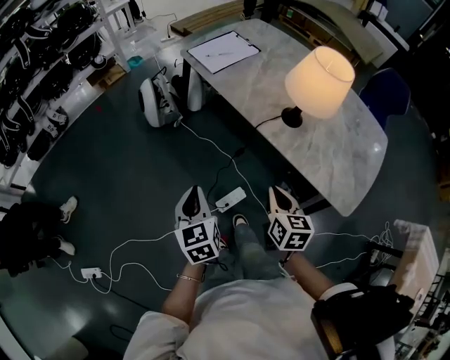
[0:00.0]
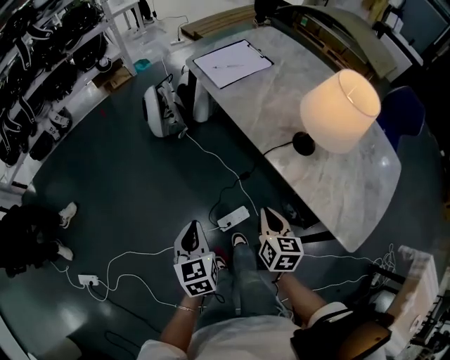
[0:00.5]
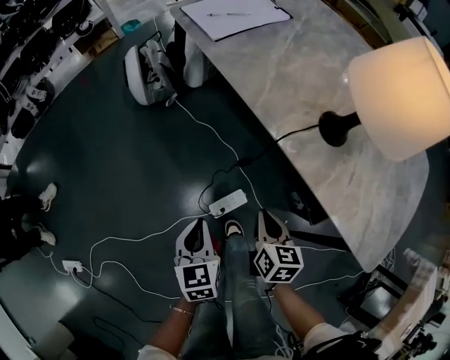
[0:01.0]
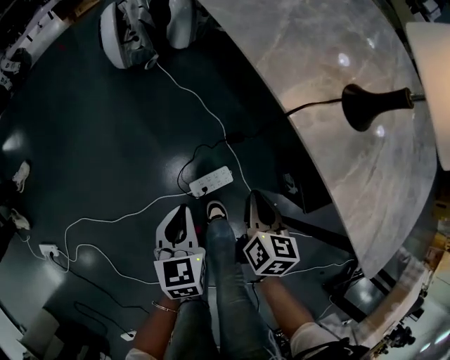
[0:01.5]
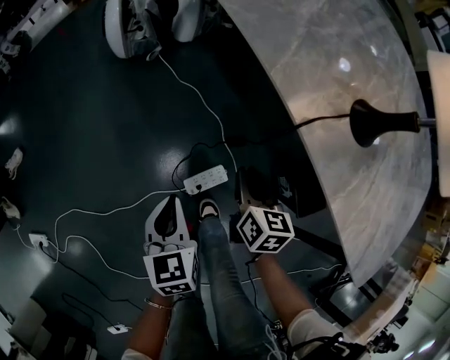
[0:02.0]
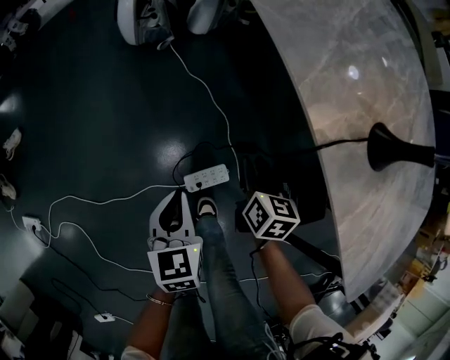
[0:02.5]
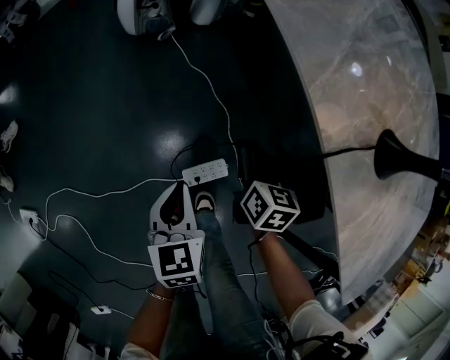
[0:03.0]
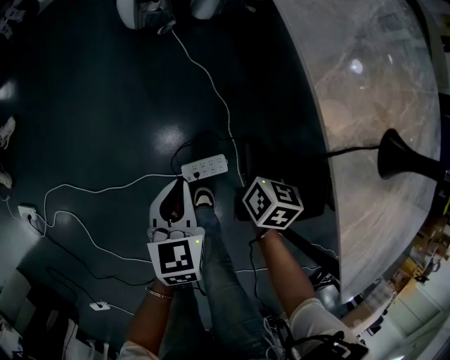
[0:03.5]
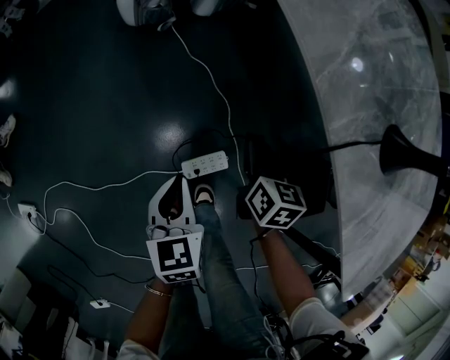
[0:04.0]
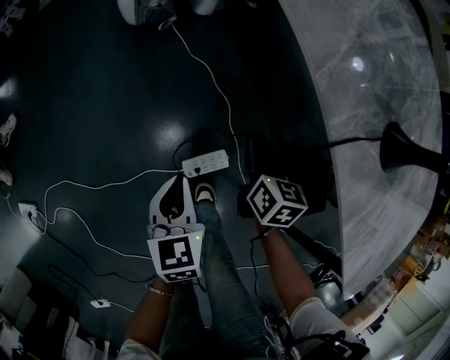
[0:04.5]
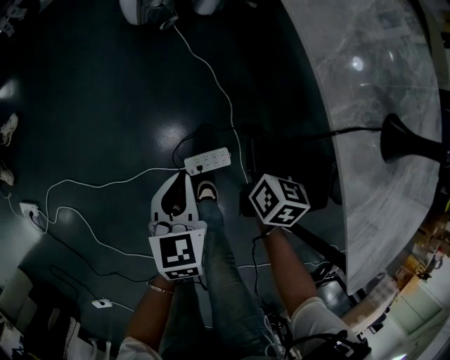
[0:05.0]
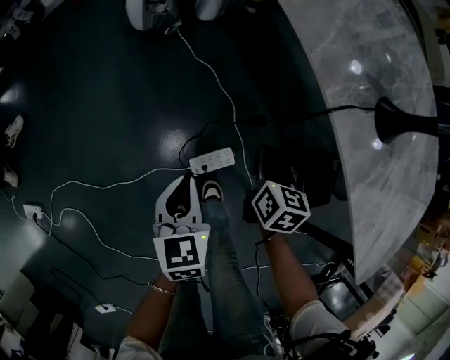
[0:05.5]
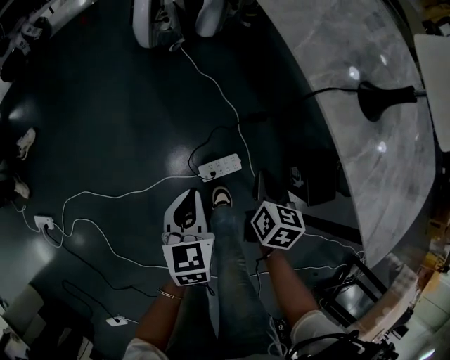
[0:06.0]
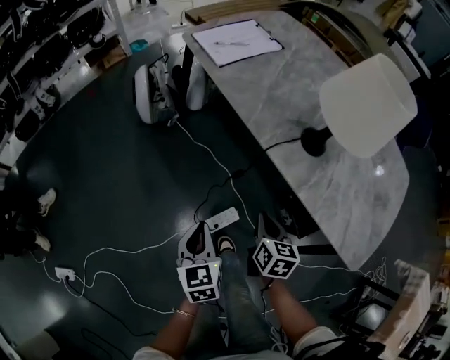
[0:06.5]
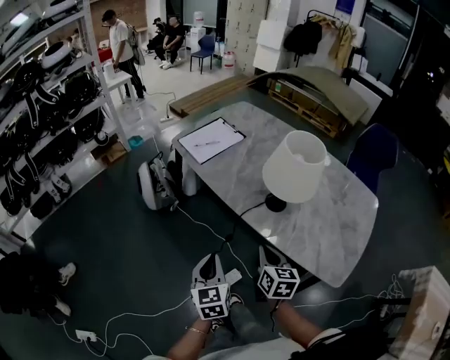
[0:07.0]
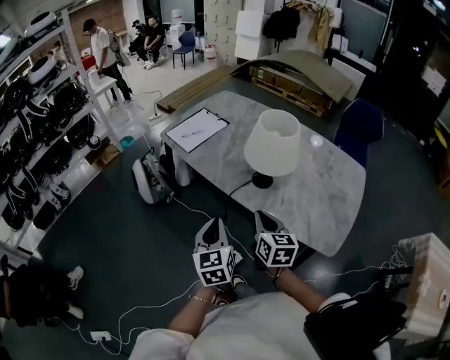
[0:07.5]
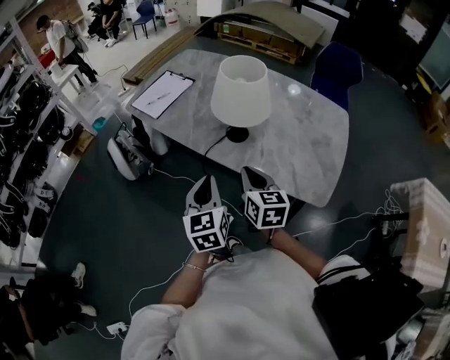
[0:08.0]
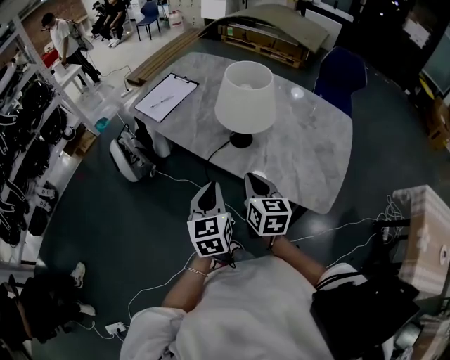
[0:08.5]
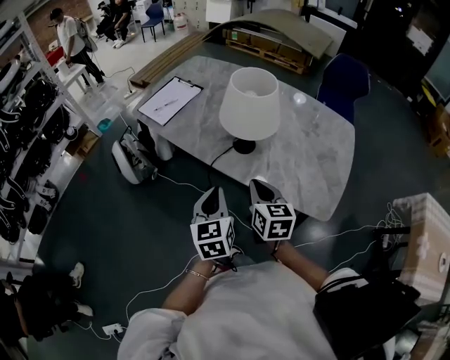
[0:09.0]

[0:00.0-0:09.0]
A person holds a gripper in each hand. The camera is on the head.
0:00.0 to 0:02.0: The left gripper is displaced downward by some 30 cm. Meanwhile the right gripper is displaced downward and forward by about 40 cm.
0:02.0 to 0:04.5: The right gripper is displaced forward by about 5 cm.
0:04.5 to 0:07.0: The left gripper travels upward by roughly 35 cm, and changes its angle by some 30 degrees. Meanwhile the right gripper heads upward and backward, covering some 40 cm, and swivels approximately 20 degrees.
0:07.0 to 0:09.0: The two grippers go some 10 cm to the right and upward.

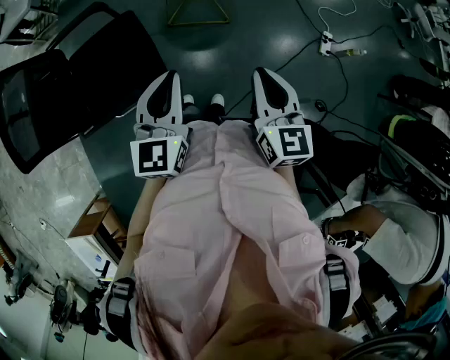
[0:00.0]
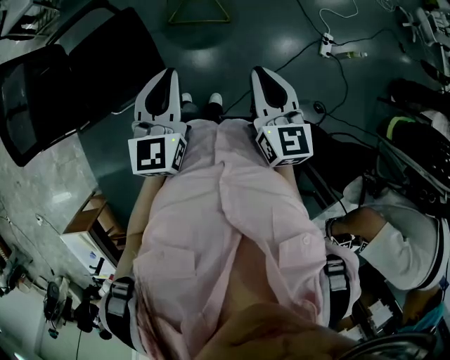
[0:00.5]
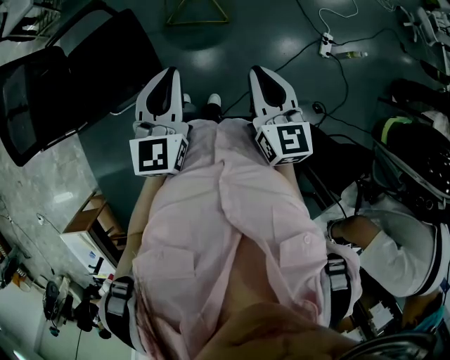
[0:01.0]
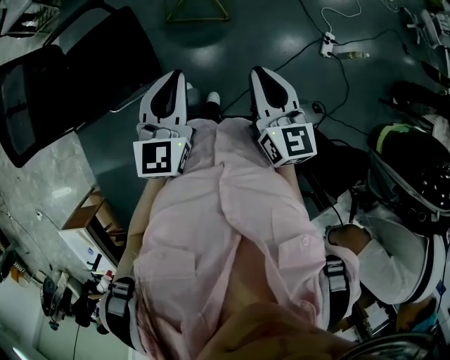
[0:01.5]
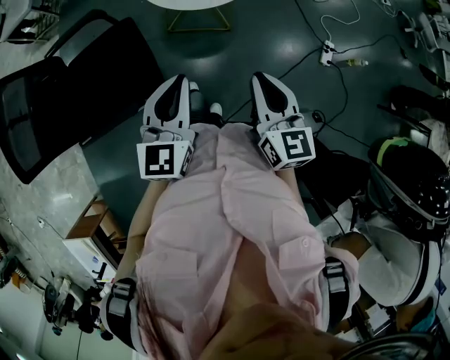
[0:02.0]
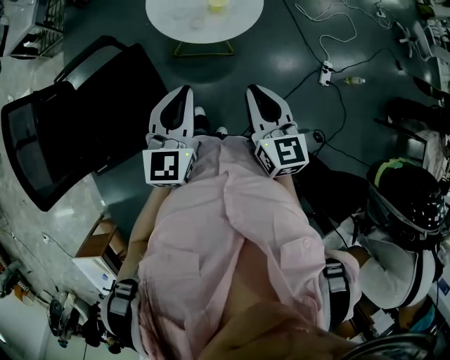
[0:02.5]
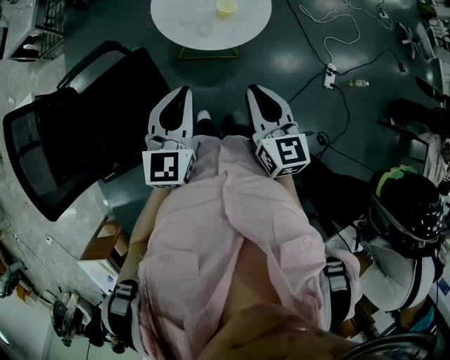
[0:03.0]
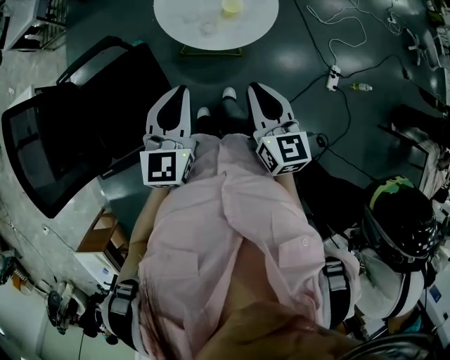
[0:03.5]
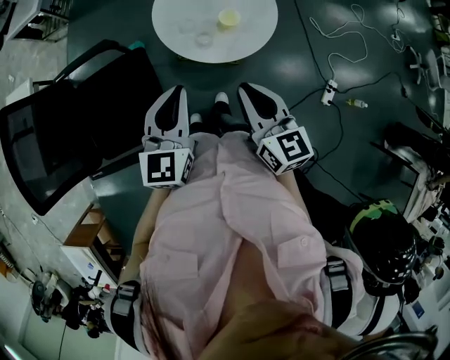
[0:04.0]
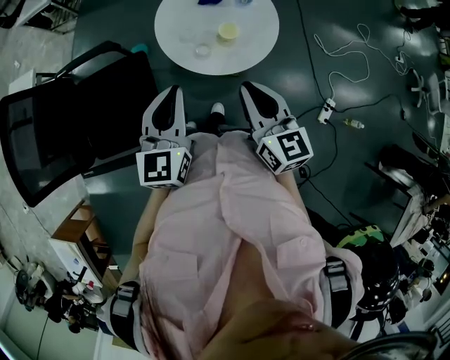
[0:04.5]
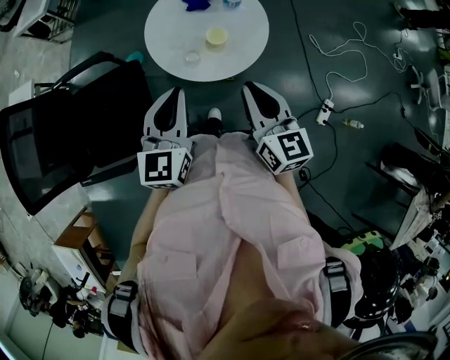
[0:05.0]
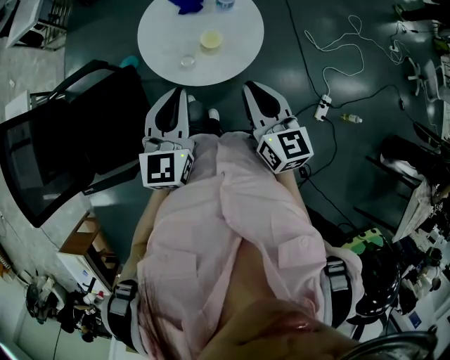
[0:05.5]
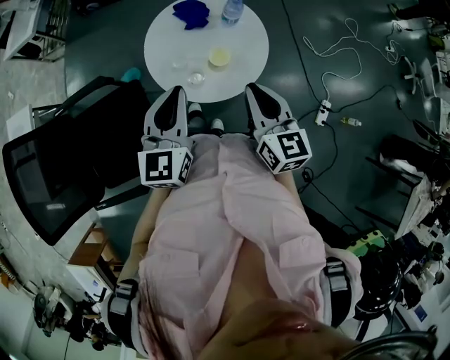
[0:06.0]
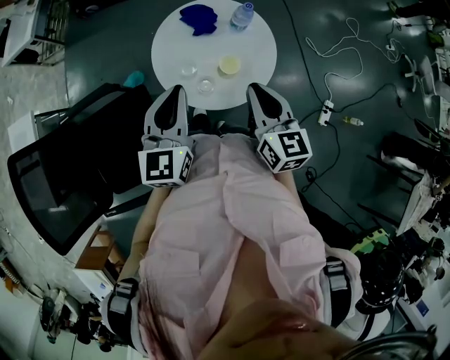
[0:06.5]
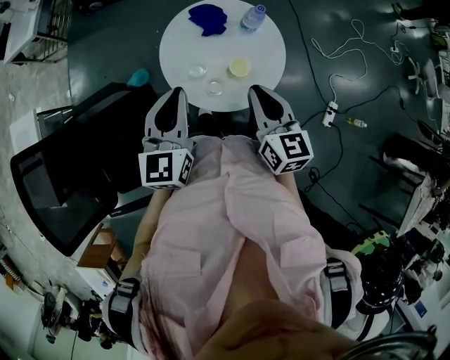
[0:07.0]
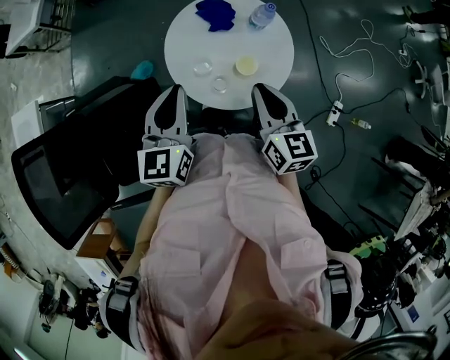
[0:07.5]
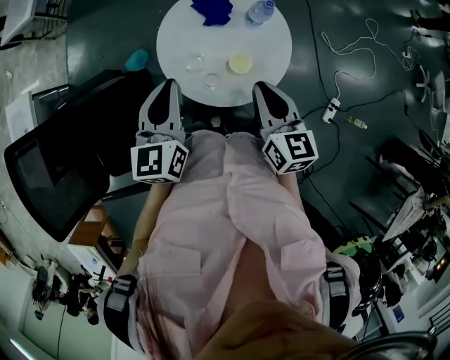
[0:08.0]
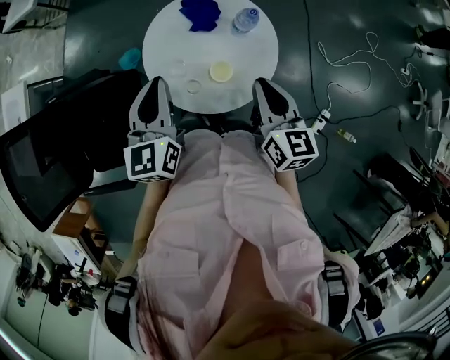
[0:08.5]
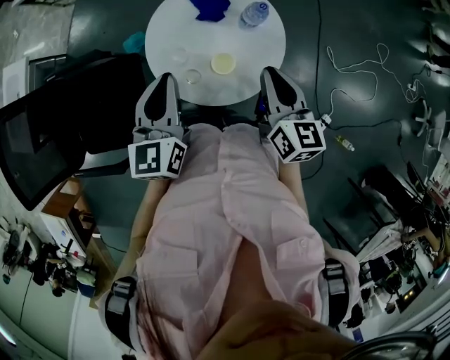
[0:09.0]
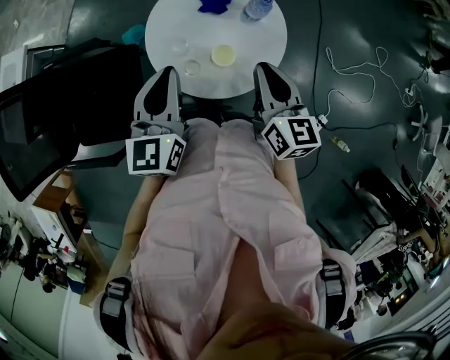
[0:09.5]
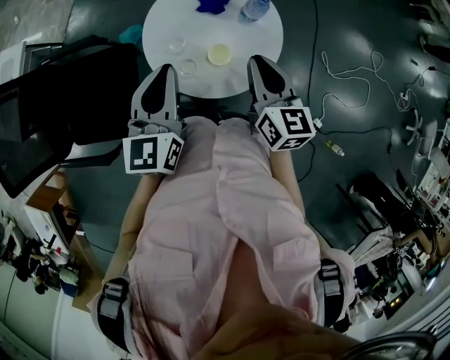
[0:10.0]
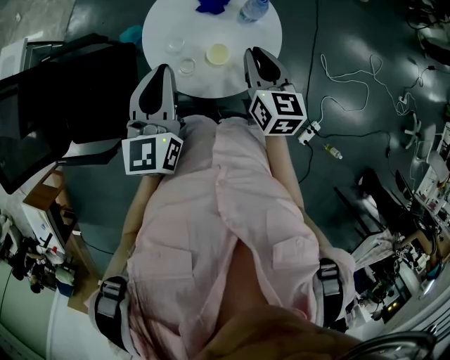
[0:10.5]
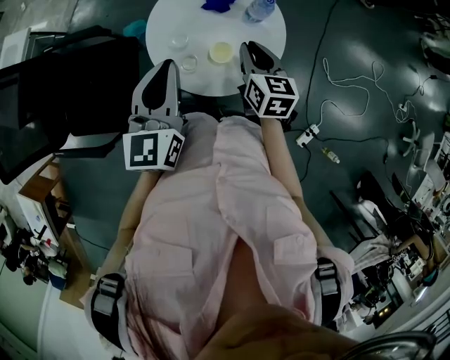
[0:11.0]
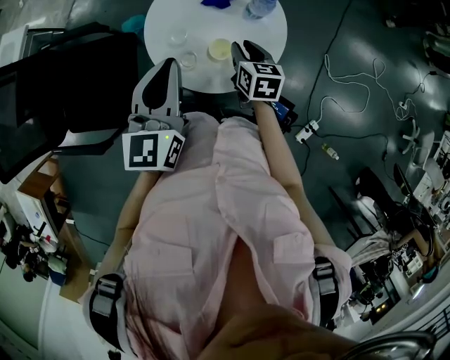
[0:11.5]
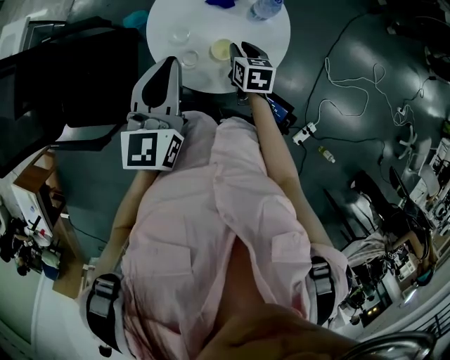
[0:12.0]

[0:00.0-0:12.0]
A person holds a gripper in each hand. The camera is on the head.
0:00.0 to 0:02.0: The left gripper moves some 5 cm, while the right gripper moves forward, some 5 cm.
0:02.0 to 0:04.0: Both grippers move forward, about 20 cm.
0:04.0 to 0:06.0: The right gripper travels forward and to the right by approximately 15 cm; the left gripper goes about 15 cm forward.
0:06.0 to 0:08.0: The left gripper travels forward and to the left by some 10 cm, while the right gripper goes about 5 cm forward.
0:08.0 to 0:10.0: The two grippers go about 5 cm to the right.
0:10.0 to 0:12.0: The right gripper is displaced downward by some 20 cm, and rotates some 30 degrees.

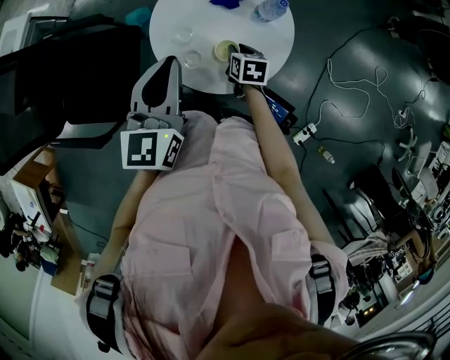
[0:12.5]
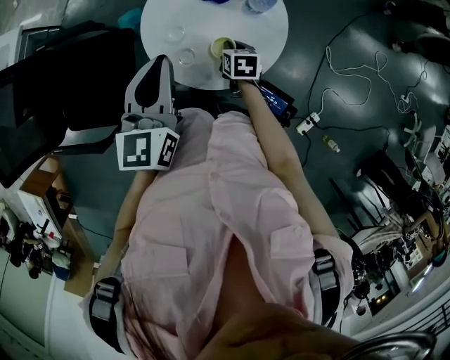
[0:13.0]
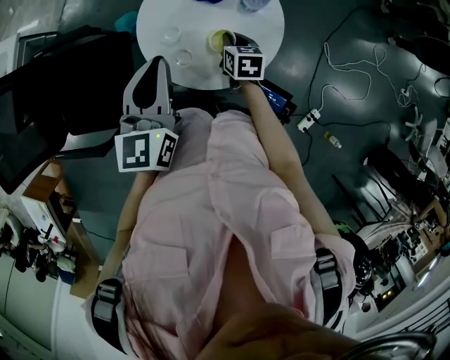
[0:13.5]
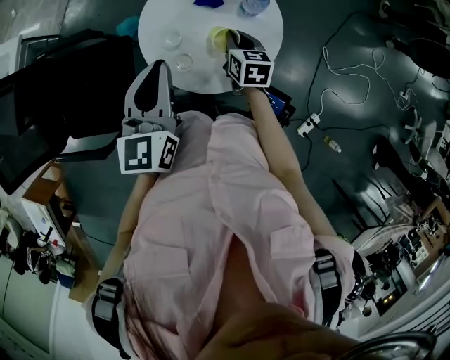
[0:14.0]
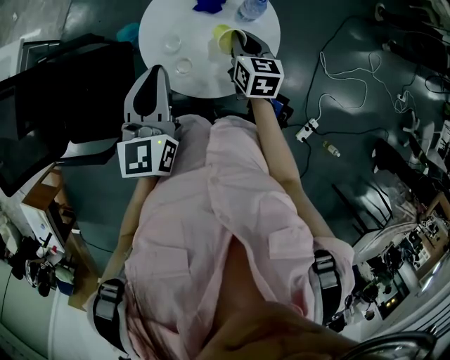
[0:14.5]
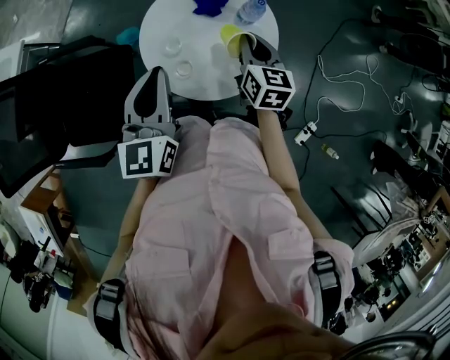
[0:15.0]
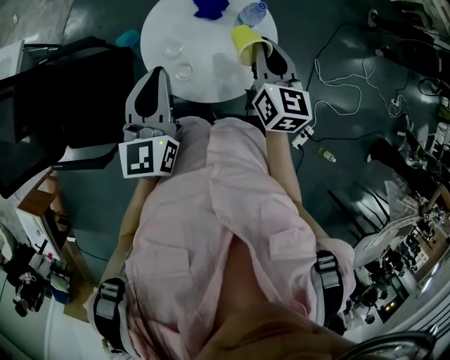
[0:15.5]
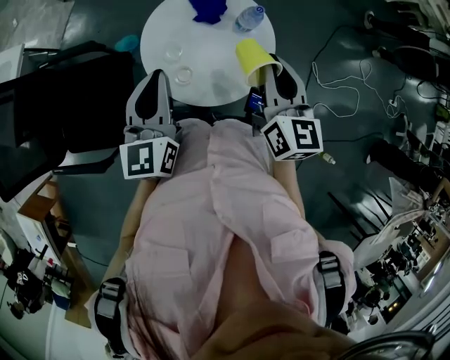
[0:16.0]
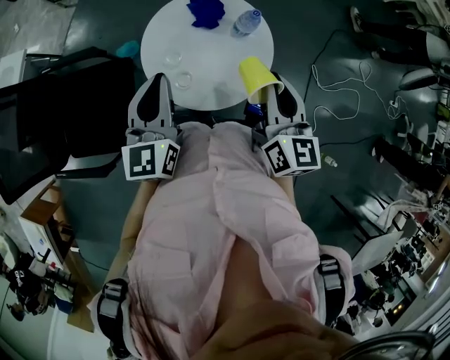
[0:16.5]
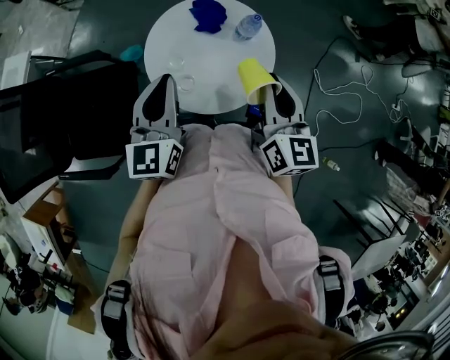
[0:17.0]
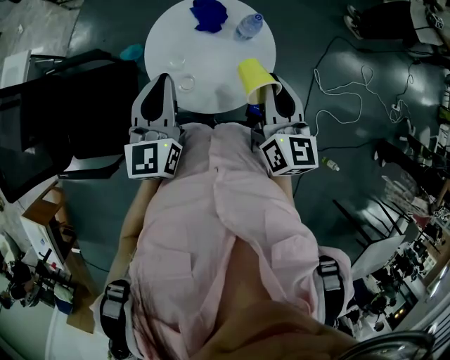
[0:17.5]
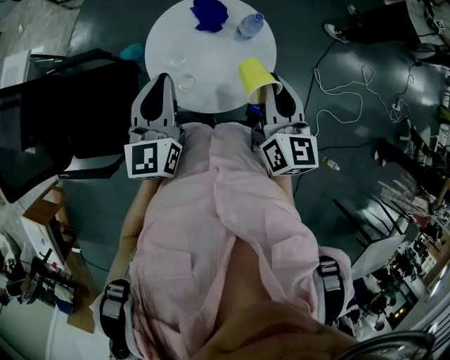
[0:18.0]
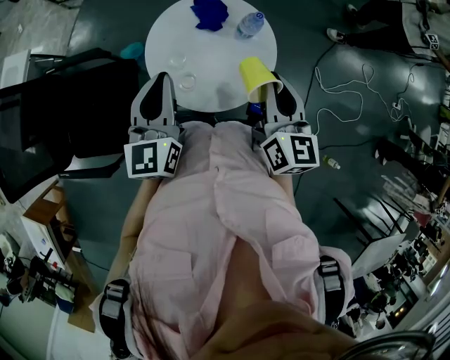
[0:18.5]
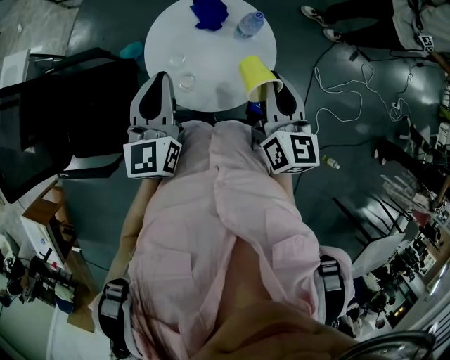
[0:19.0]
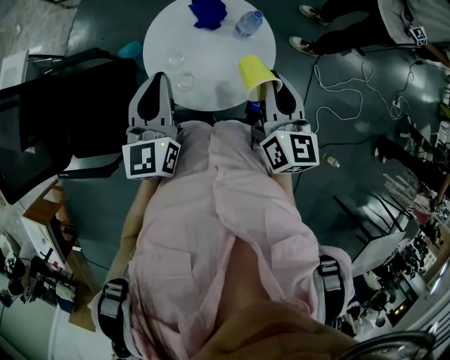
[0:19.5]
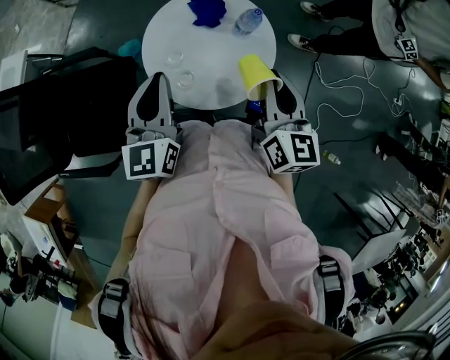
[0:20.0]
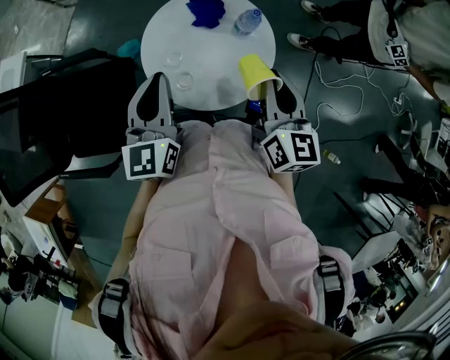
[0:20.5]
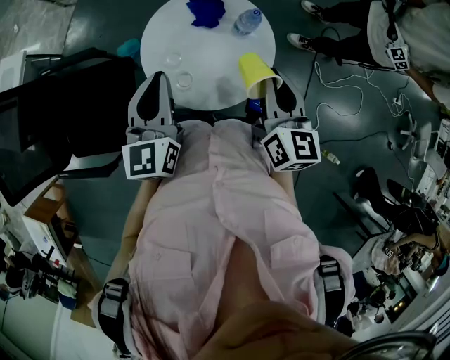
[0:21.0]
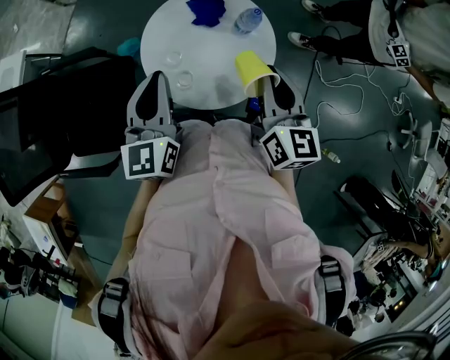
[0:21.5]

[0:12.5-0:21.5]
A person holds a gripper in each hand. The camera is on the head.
0:12.5 to 0:14.5: The right gripper shifts approximately 15 cm upward, and turns by about 20 degrees.
0:14.5 to 0:17.0: The right gripper moves upward and backward, about 20 cm, and swivels approximately 20 degrees.
0:17.0 to 0:19.5: Neither gripper changes place.
0:19.5 to 0:21.5: The grippers make only small movements.
